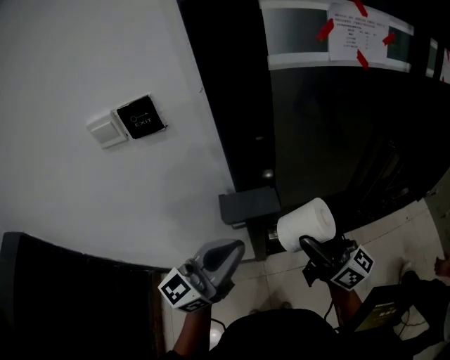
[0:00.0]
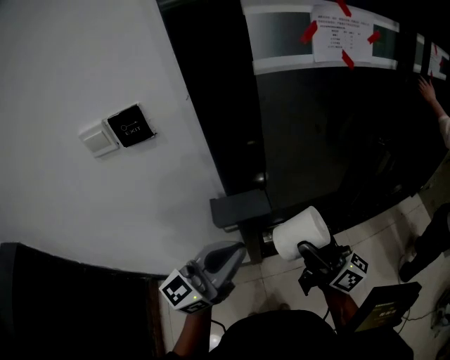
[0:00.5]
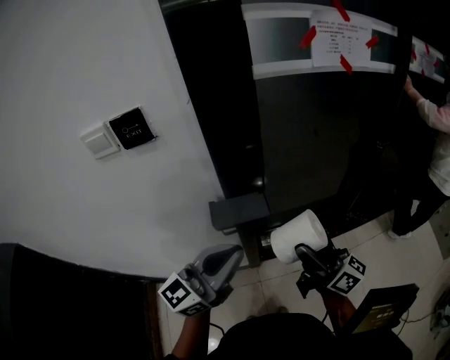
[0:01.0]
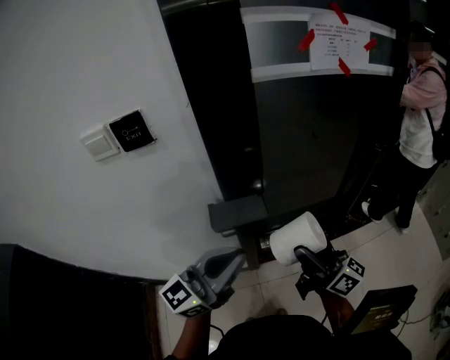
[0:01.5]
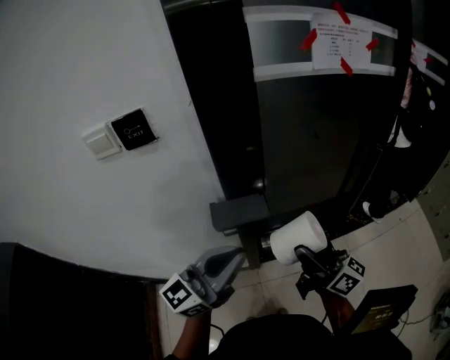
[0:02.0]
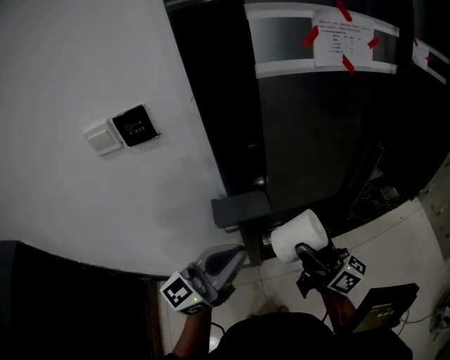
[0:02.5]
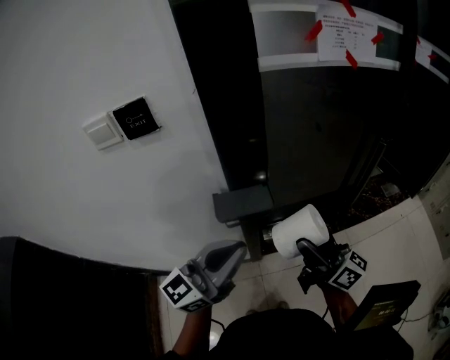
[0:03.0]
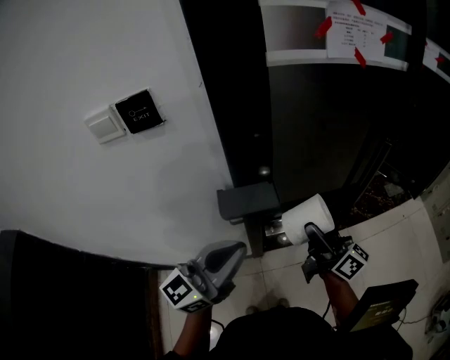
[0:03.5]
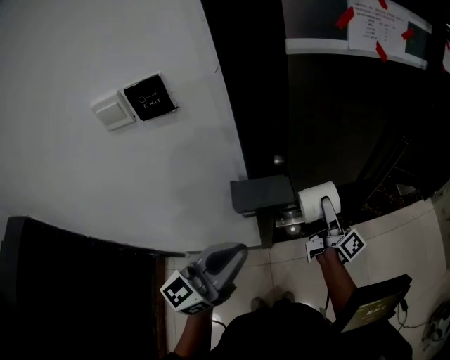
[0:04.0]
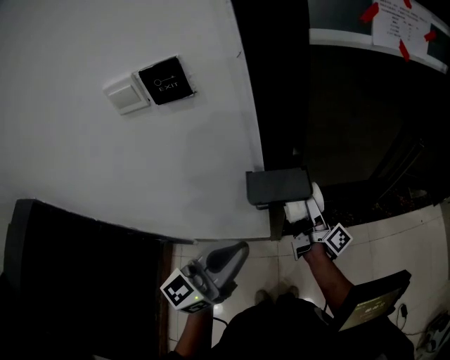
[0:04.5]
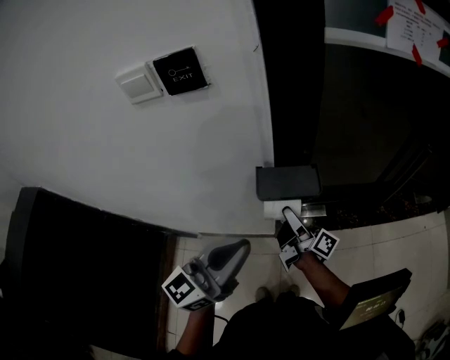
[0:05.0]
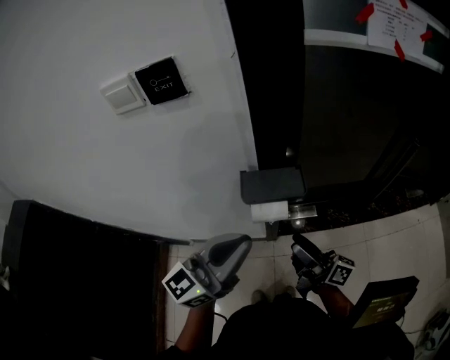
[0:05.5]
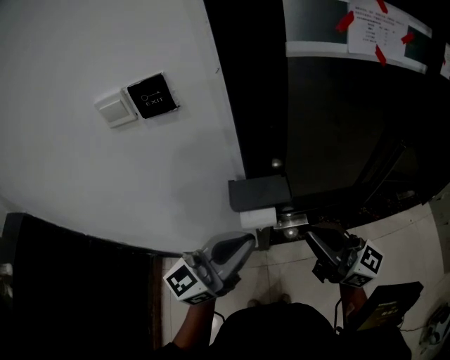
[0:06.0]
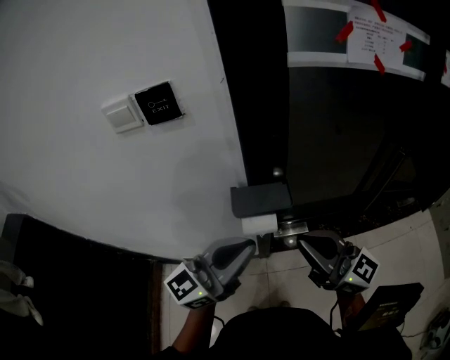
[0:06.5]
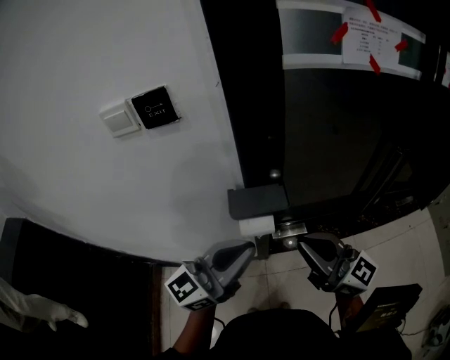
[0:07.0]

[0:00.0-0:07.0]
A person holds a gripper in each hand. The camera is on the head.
0:00.0 to 0:03.5: The grippers move only a little.
0:03.5 to 0:05.0: The left gripper heads to the left, covering some 5 cm, while the right gripper is displaced to the left and downward by roughly 20 cm, and rolls clockwise, seen from behind, by about 40 degrees.
0:05.0 to 0:07.0: The right gripper moves upward, backward and to the right, roughly 25 cm, rolls counterclockwise, seen from behind, by roughly 70 degrees, and closes, while the left gripper goes some 5 cm to the right.

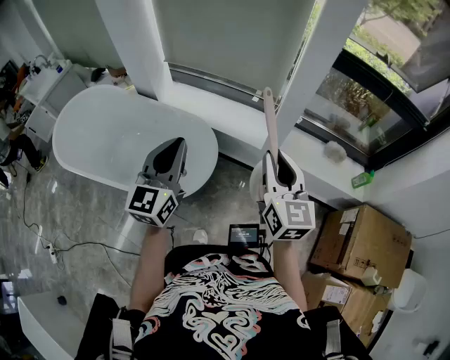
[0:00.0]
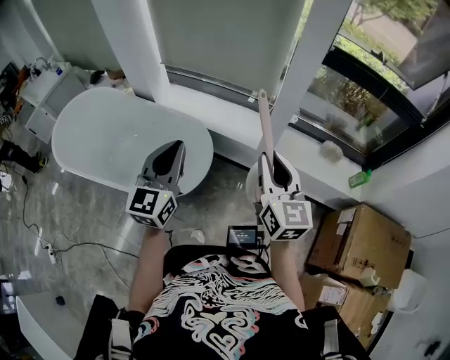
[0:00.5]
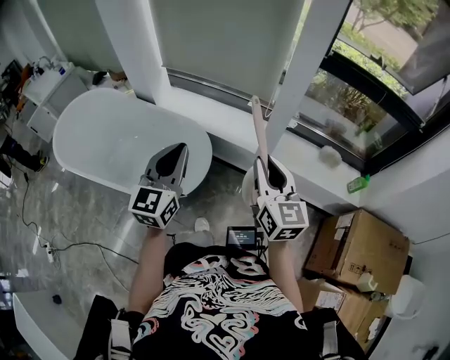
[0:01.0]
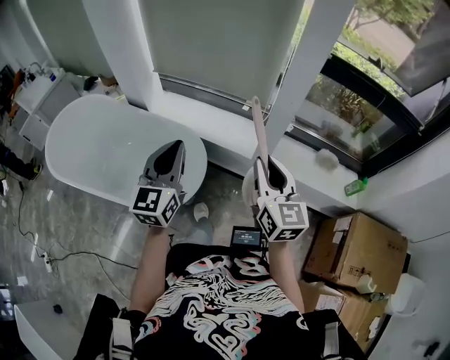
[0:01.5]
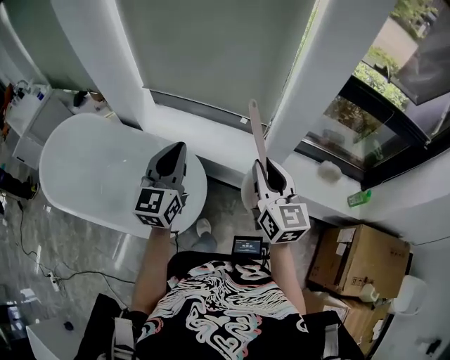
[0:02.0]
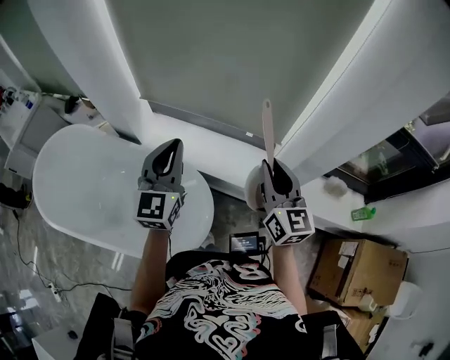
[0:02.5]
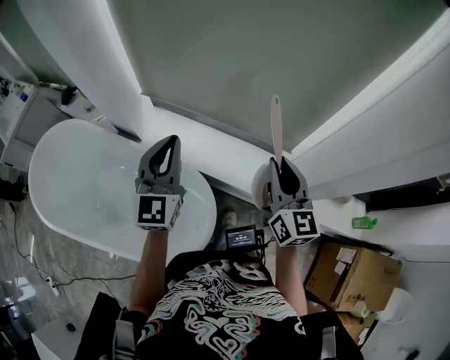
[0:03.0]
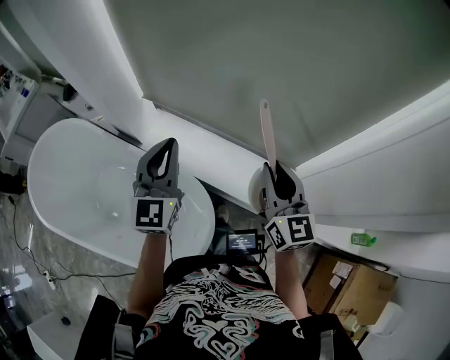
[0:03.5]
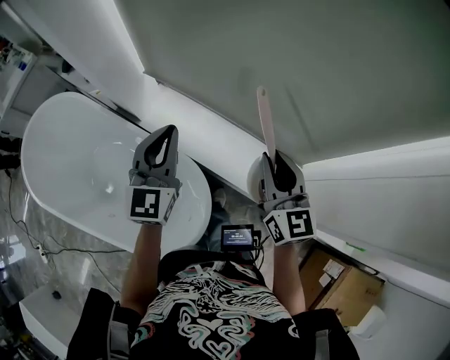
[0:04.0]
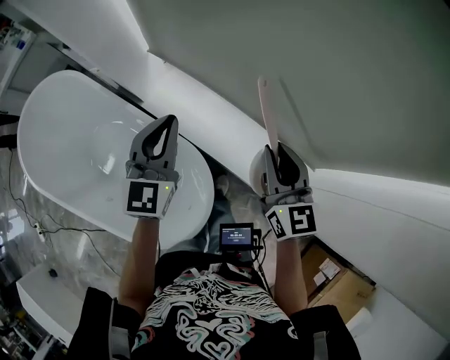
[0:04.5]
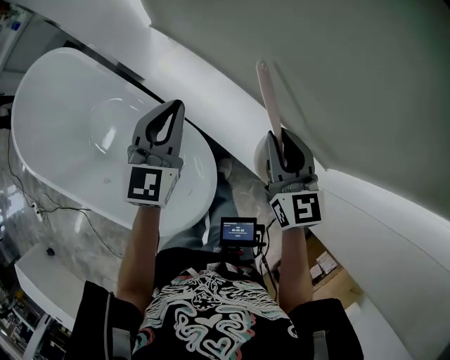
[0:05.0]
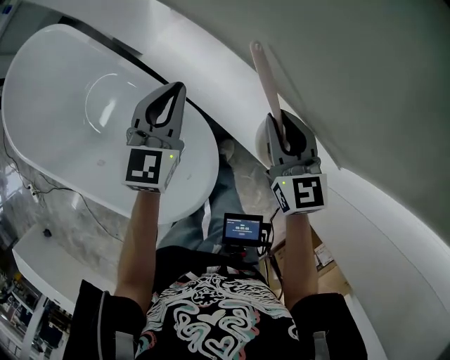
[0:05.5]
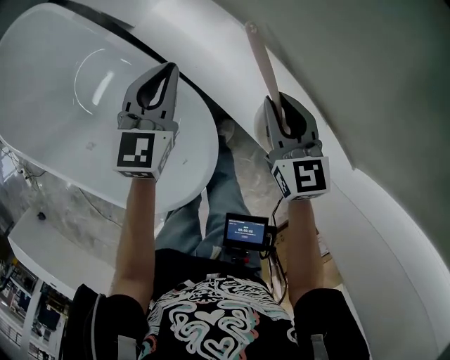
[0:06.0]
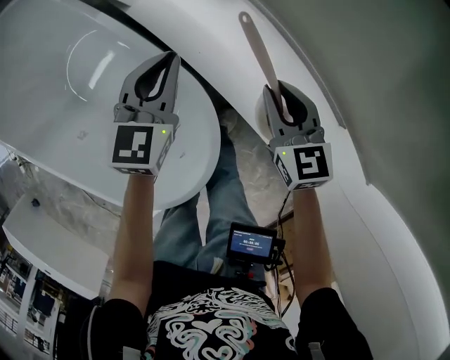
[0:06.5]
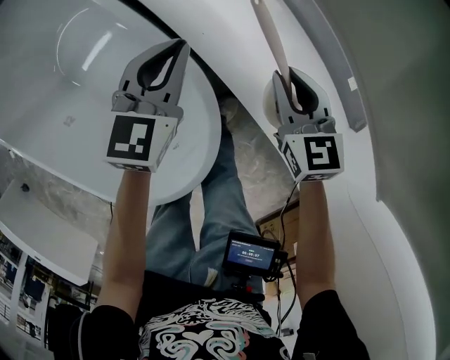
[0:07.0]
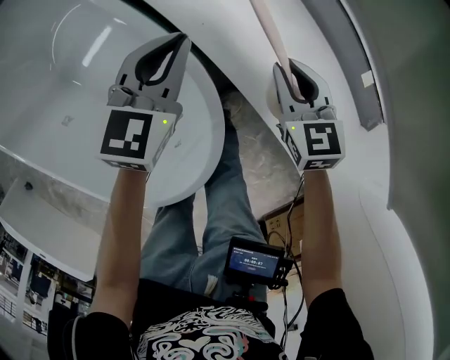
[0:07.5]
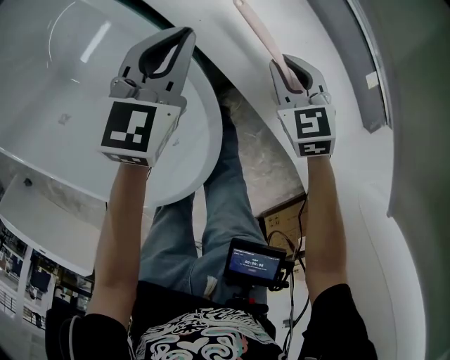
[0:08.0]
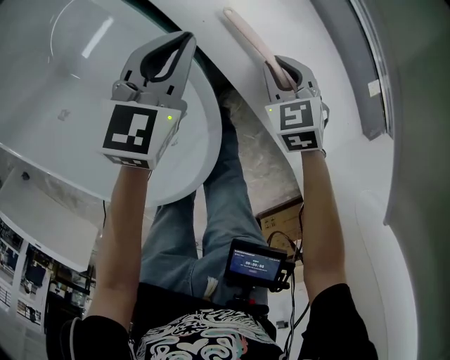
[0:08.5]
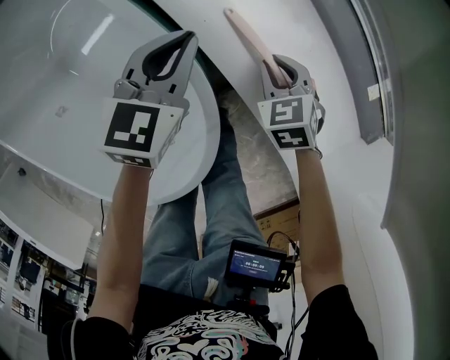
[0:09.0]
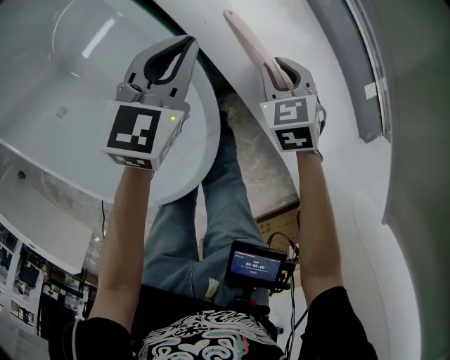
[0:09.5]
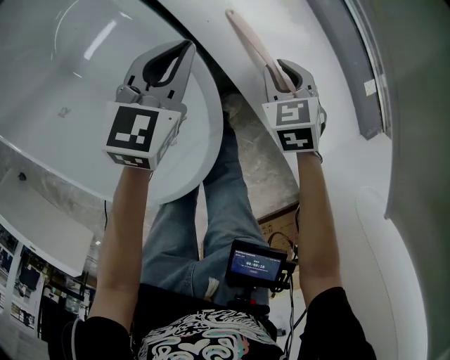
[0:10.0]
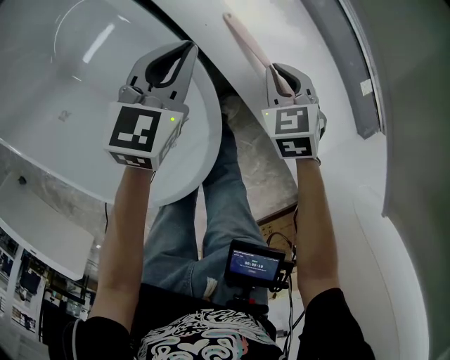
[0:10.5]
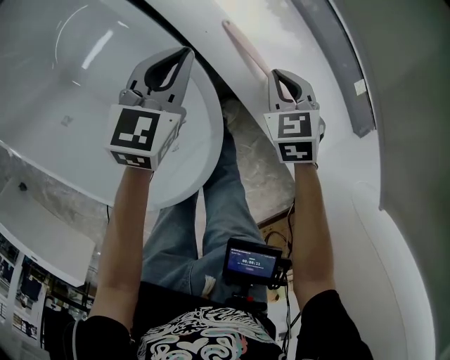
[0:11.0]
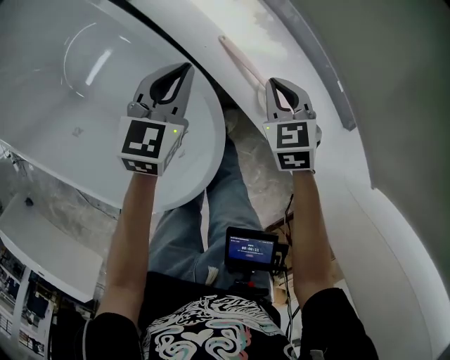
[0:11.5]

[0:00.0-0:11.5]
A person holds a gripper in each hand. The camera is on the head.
0:00.0 to 0:02.0: Both grippers travel together forward, about 20 cm.
0:02.0 to 0:04.0: Both grippers move forward, roughly 35 cm.
0:04.0 to 0:06.0: The left gripper travels downward by some 25 cm, and rotates roughly 20 degrees; the right gripper is displaced downward and forward by approximately 30 cm, and rotates about 30 degrees.
0:06.0 to 0:07.5: Both grippers move downward, some 20 cm.
0:07.5 to 0:09.5: The right gripper is displaced downward by roughly 10 cm, and turns by approximately 20 degrees.
0:09.5 to 0:11.5: The left gripper is displaced upward by roughly 10 cm. The right gripper goes some 15 cm upward.

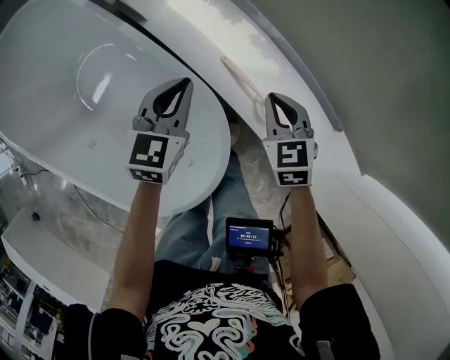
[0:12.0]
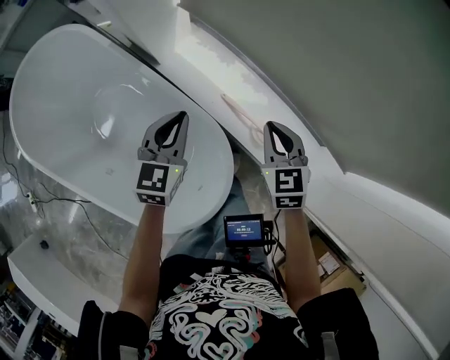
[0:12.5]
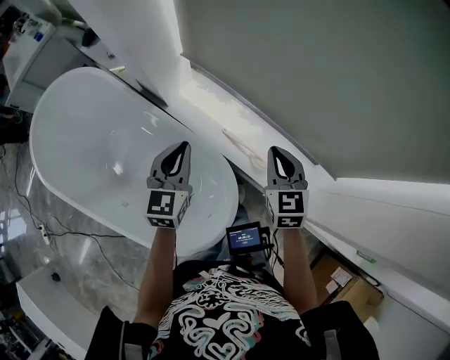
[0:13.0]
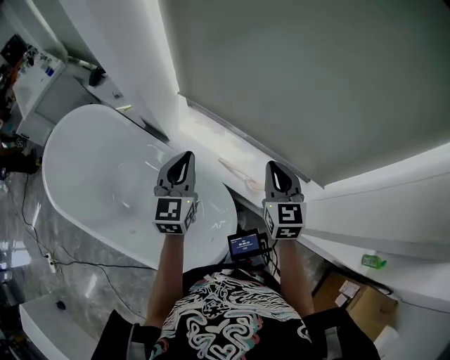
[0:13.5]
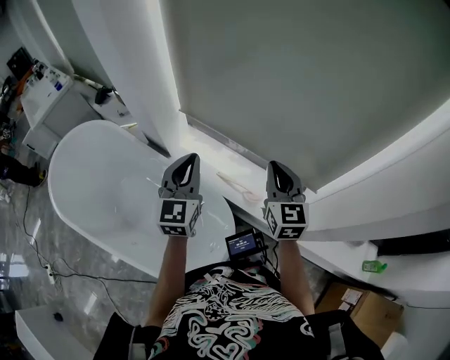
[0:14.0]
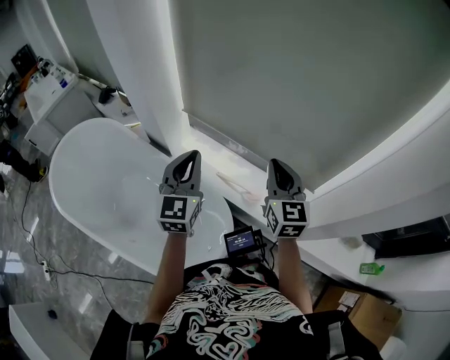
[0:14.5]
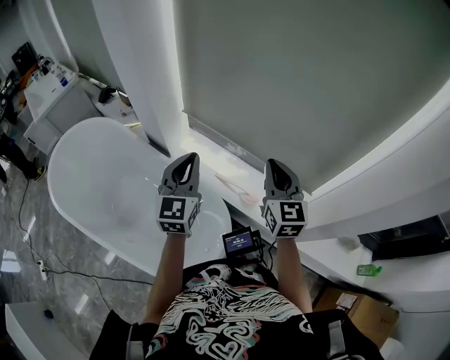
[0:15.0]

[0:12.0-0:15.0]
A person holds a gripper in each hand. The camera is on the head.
0:12.0 to 0:13.5: The grippers both shift upward by roughly 30 cm. The right gripper swivels about 30 degrees. Meanwhile the left gripper changes its angle by approximately 20 degrees.
0:13.5 to 0:15.0: The grippers both shift upward and backward by about 10 cm.

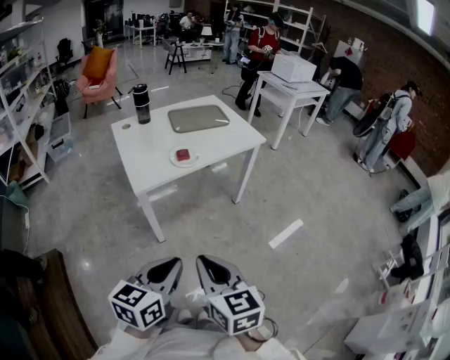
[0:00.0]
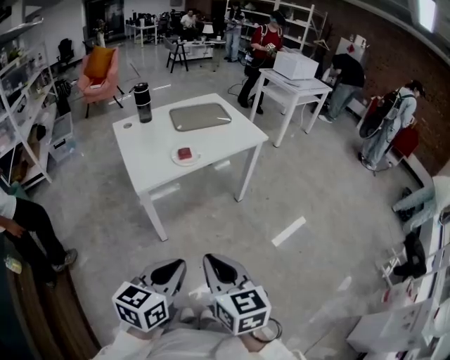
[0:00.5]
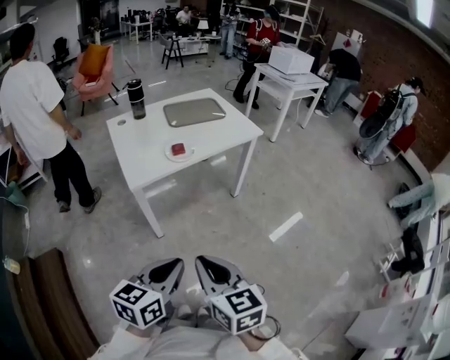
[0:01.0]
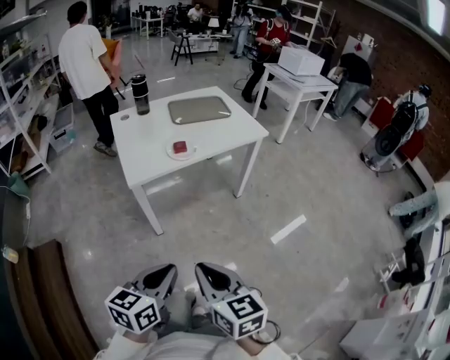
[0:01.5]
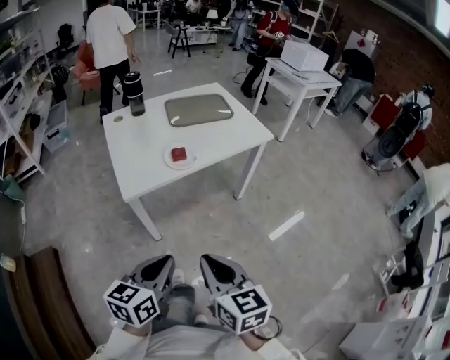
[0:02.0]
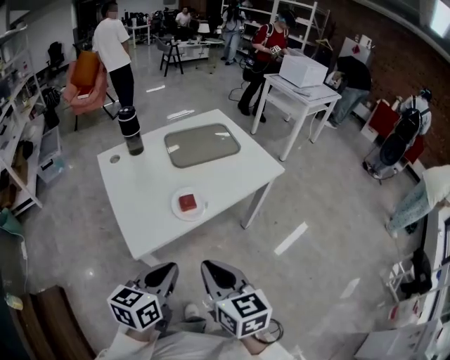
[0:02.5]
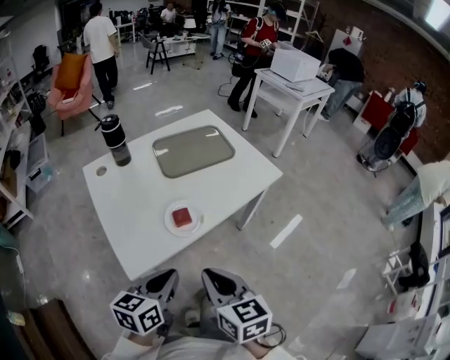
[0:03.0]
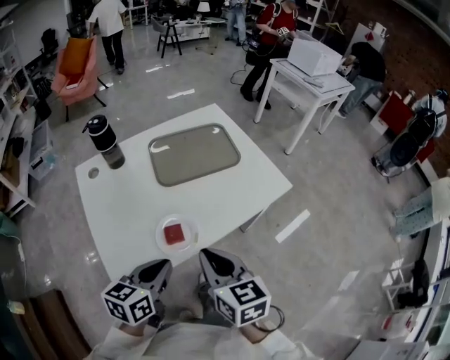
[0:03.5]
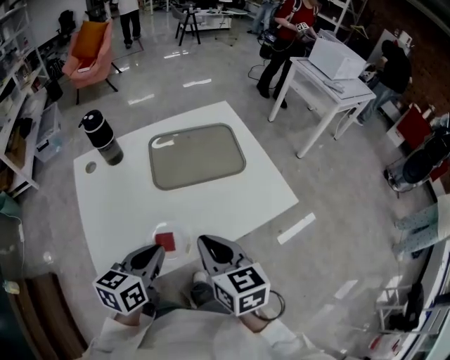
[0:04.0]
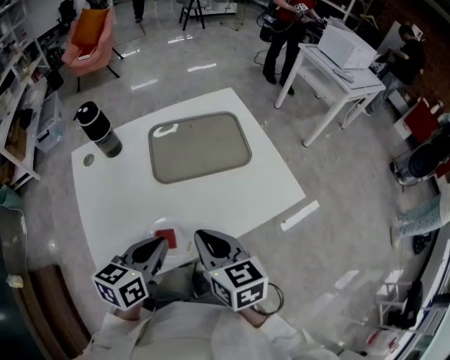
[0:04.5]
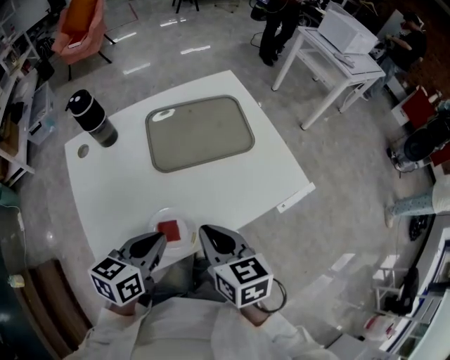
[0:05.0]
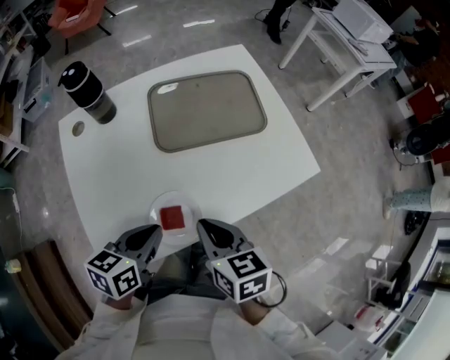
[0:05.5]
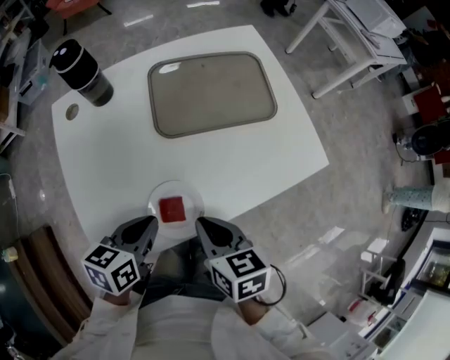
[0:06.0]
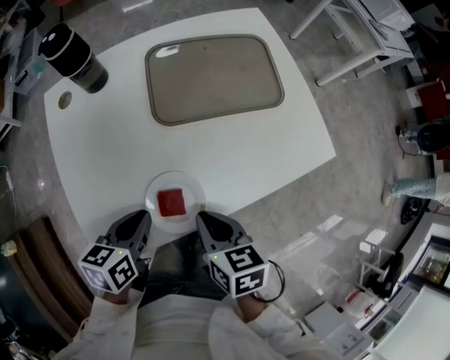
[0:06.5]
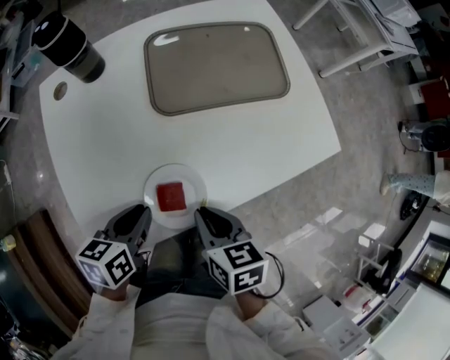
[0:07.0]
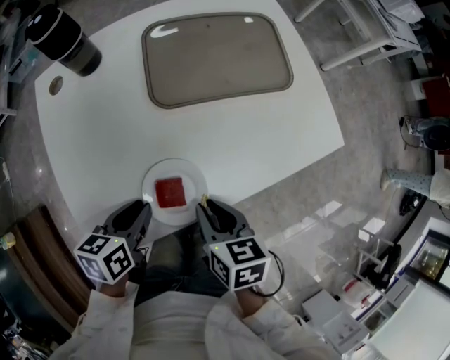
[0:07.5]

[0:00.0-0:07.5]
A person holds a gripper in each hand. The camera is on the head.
0:00.0 to 0:02.0: The right gripper goes approximately 10 cm forward. Meanwhile the left gripper moves forward and downward, roughly 10 cm.
0:02.0 to 0:04.0: The pair of grippers is taken forward, about 50 cm.
0:04.0 to 0:05.5: The two grippers go about 5 cm downward.
0:05.5 to 0:07.5: Both grippers move downward, some 10 cm.
